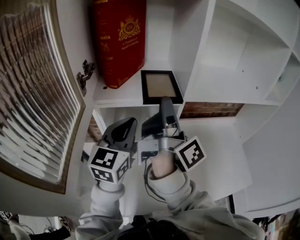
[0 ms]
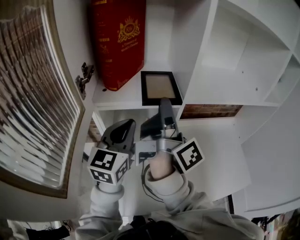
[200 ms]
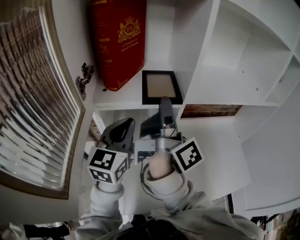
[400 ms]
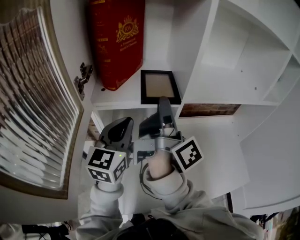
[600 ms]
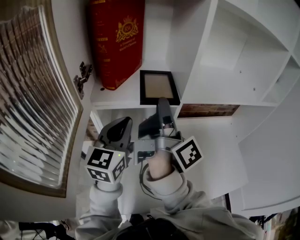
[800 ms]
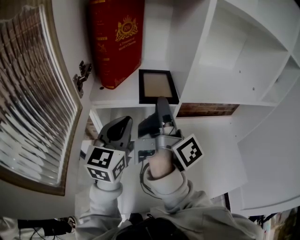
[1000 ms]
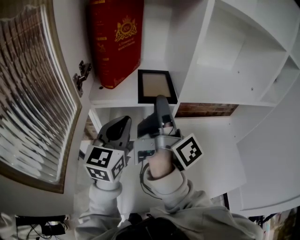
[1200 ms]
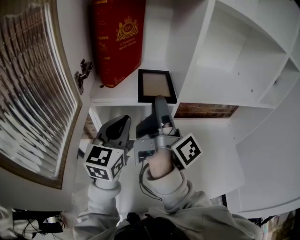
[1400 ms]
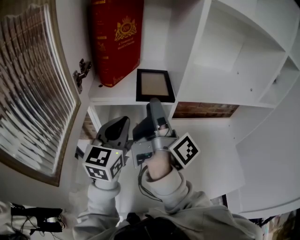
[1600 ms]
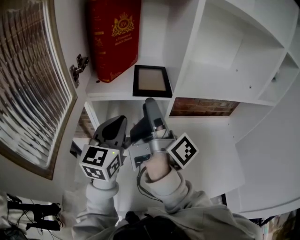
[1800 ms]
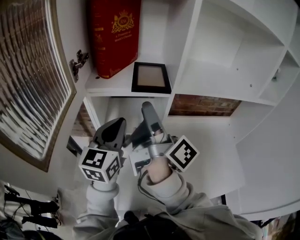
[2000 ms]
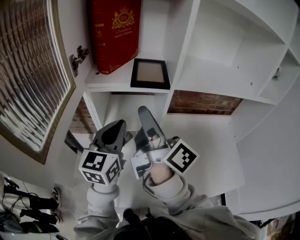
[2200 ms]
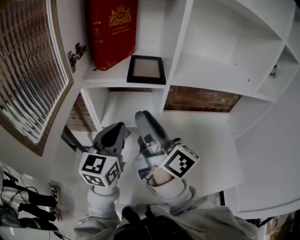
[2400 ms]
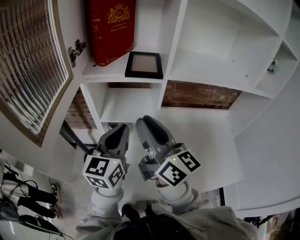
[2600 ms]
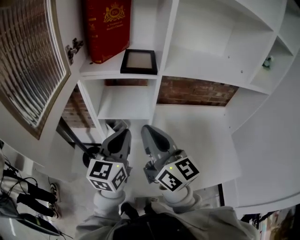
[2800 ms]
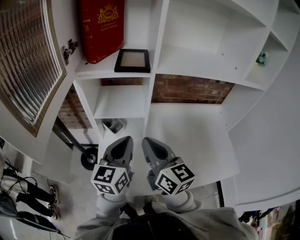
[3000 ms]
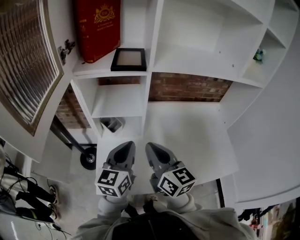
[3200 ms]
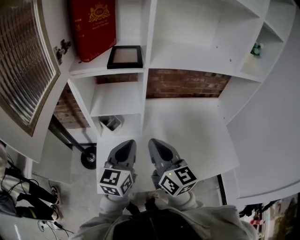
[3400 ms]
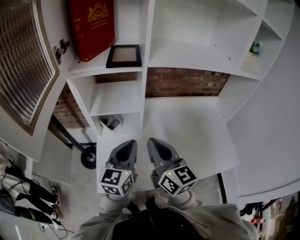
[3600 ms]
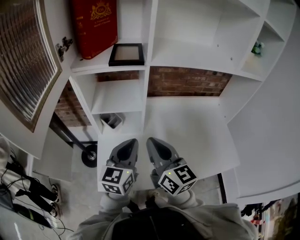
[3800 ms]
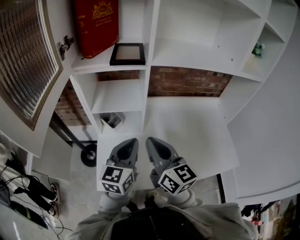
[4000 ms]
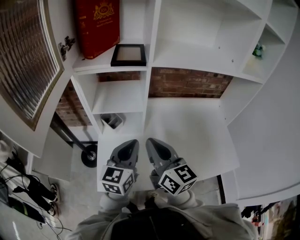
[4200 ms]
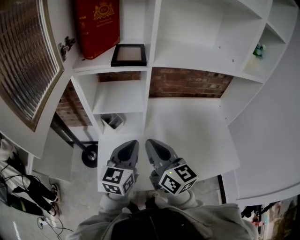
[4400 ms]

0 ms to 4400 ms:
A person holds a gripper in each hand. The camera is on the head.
0 ms to 1400 ms: The right gripper opens up.
1400 ms to 3000 ms: The left gripper travels backward, downward and to the right by about 20 cm; the right gripper heads backward and downward, covering some 20 cm, rotates around the line of its fingers by some 60 degrees, counterclockwise from behind, and closes.
3000 ms to 4400 ms: The left gripper moves approximately 5 cm.

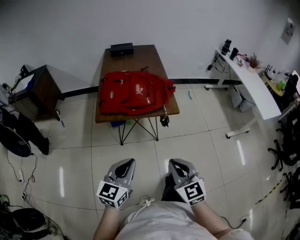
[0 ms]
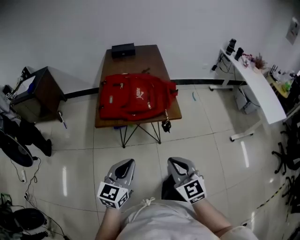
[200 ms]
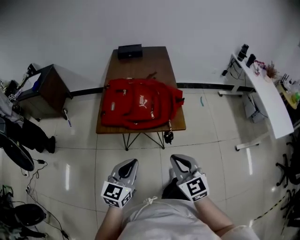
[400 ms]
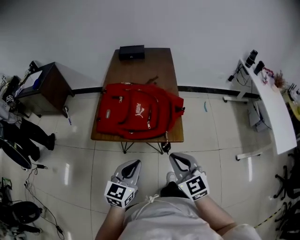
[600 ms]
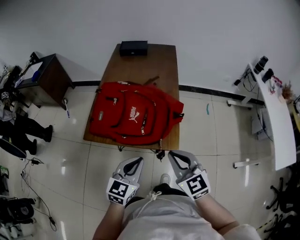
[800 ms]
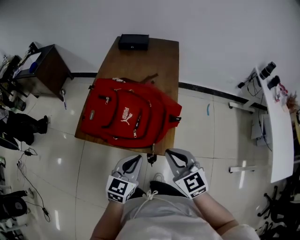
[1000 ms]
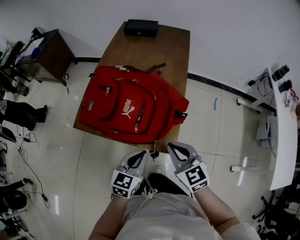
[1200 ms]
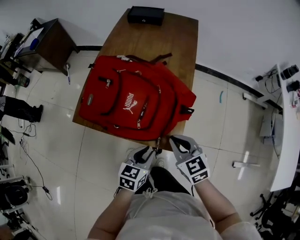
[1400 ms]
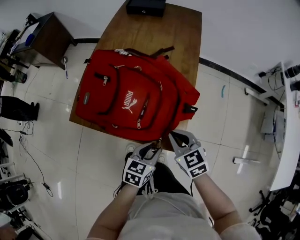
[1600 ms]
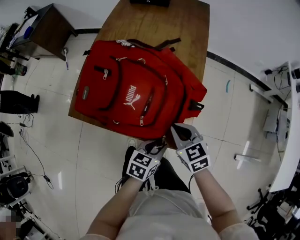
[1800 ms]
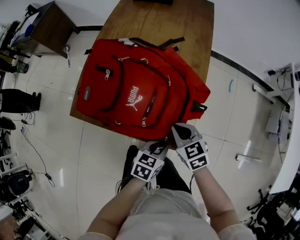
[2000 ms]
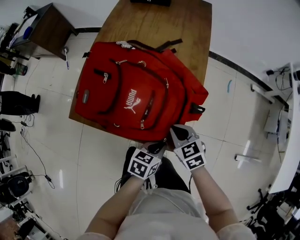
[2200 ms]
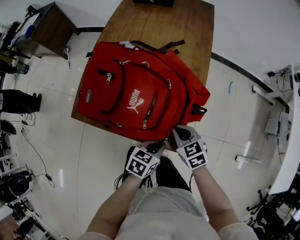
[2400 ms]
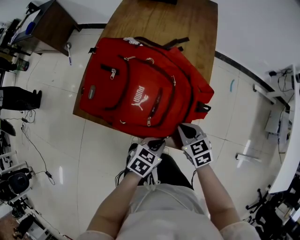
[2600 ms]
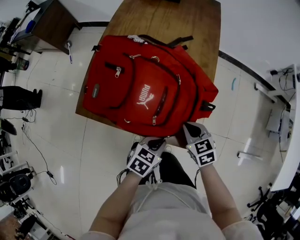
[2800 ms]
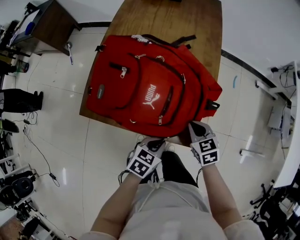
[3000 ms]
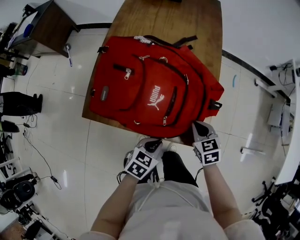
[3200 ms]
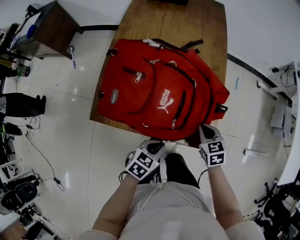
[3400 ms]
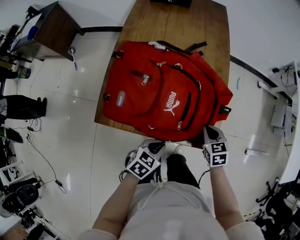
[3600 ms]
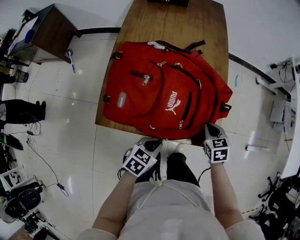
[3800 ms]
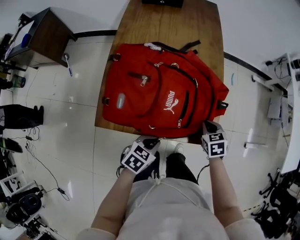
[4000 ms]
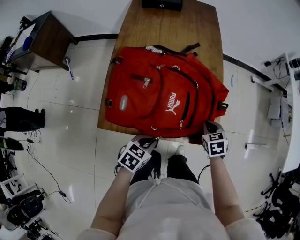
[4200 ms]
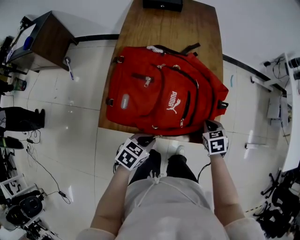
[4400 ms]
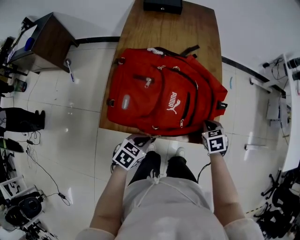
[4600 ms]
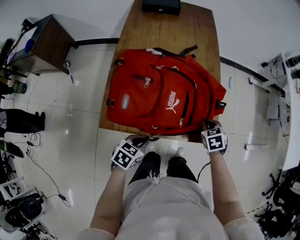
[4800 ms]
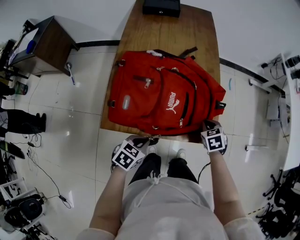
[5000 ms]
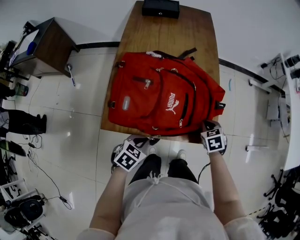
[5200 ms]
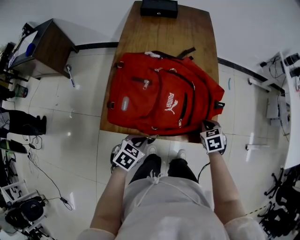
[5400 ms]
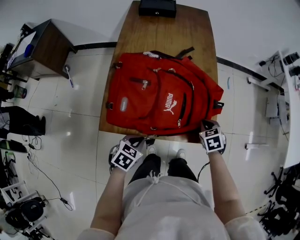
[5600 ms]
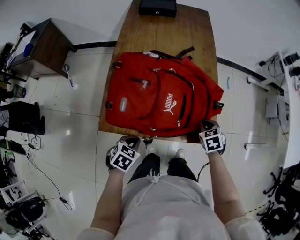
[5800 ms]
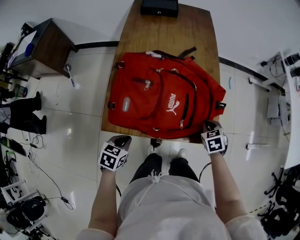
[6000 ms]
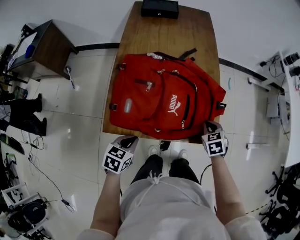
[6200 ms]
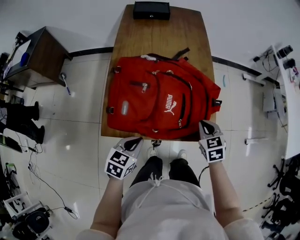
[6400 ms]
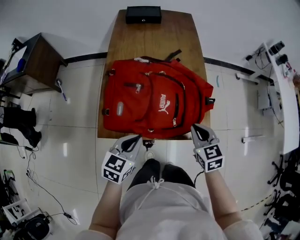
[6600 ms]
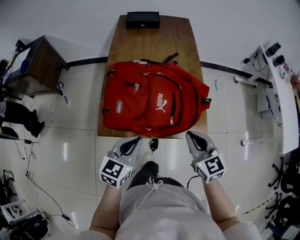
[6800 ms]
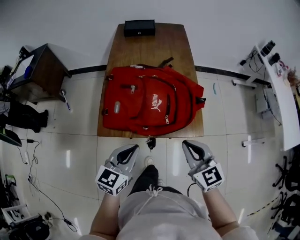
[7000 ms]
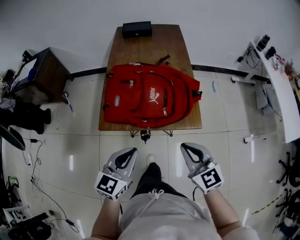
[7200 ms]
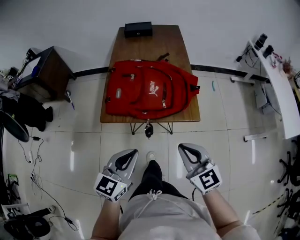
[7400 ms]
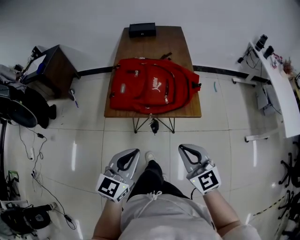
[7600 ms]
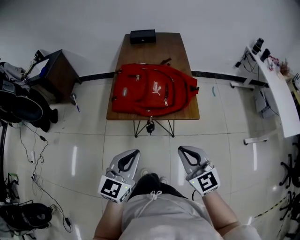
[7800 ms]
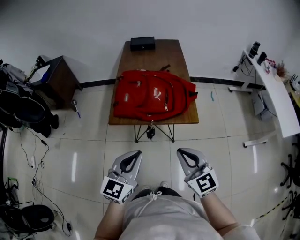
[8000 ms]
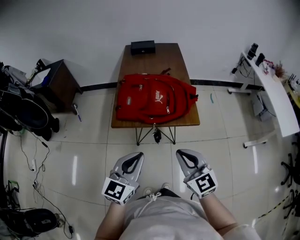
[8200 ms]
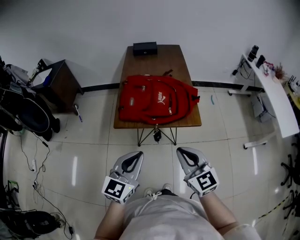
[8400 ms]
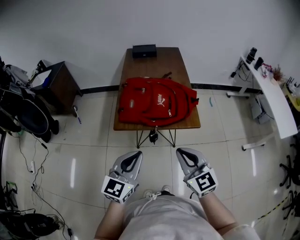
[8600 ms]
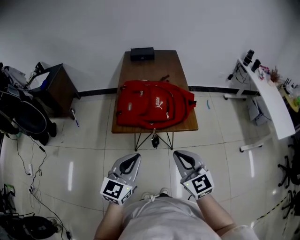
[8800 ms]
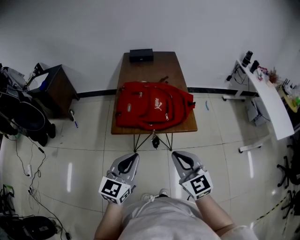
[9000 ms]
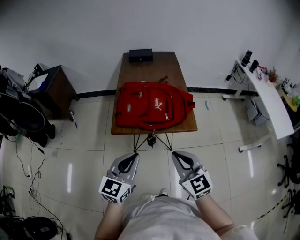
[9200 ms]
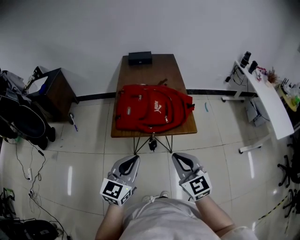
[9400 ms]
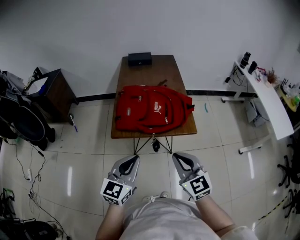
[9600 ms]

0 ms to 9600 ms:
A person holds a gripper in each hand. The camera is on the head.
0 ms to 1600 ms: The pair of grippers is taken forward and to the right, about 40 cm. The left gripper goes some 20 cm downward, turns by about 30 degrees, and opens up; the right gripper rotates some 30 degrees.
1600 ms to 3200 ms: The left gripper moves to the left, about 10 cm, and closes its fingers; the right gripper goes roughly 10 cm downward.
3200 ms to 4800 ms: The left gripper travels to the left by some 15 cm.
4800 ms to 6400 ms: The grippers both shift upward by roughly 5 cm.
6400 ms to 8000 ms: Both grippers travel together backward and upward, approximately 35 cm. The left gripper angles its fingers upward, by some 30 degrees. Meanwhile the right gripper tips its fingers upward by roughly 40 degrees.
8000 ms to 9600 ms: The right gripper shifts by approximately 5 cm.

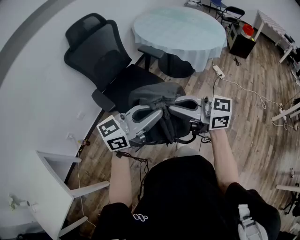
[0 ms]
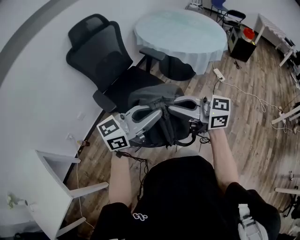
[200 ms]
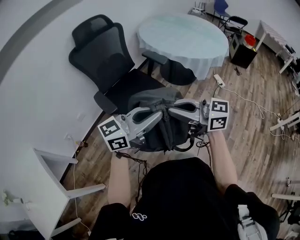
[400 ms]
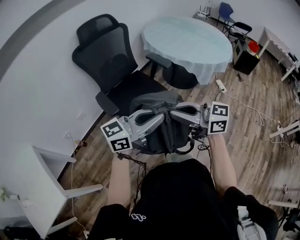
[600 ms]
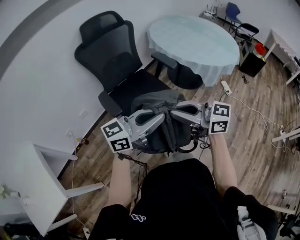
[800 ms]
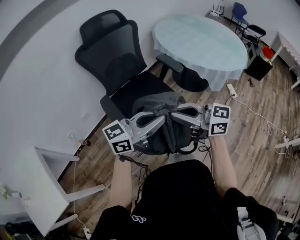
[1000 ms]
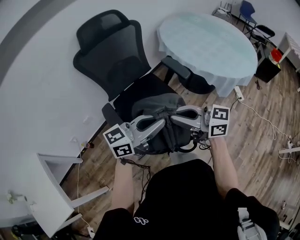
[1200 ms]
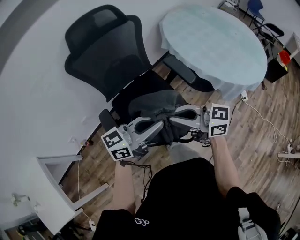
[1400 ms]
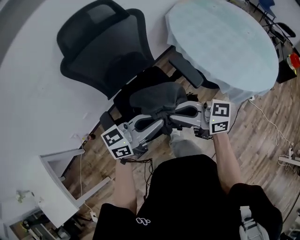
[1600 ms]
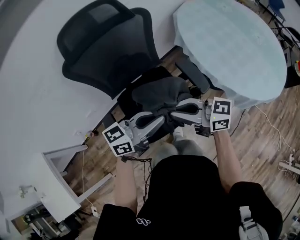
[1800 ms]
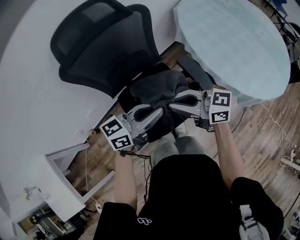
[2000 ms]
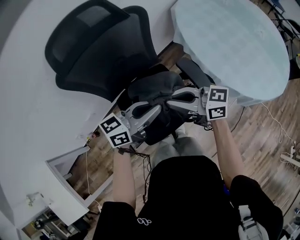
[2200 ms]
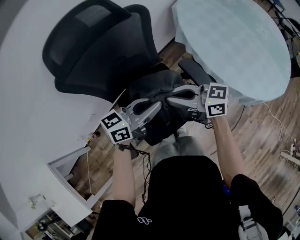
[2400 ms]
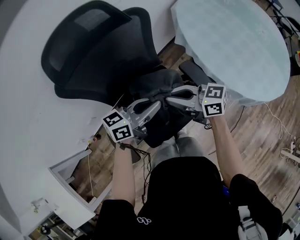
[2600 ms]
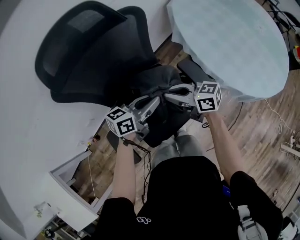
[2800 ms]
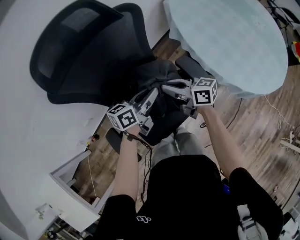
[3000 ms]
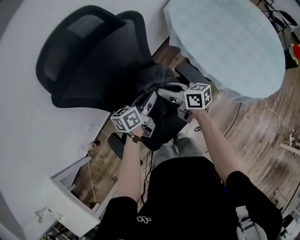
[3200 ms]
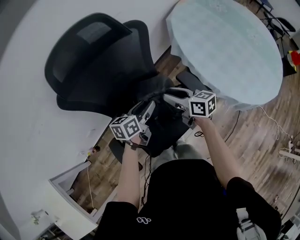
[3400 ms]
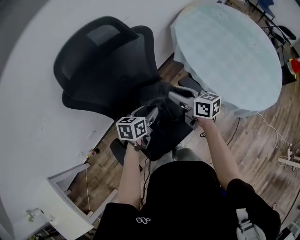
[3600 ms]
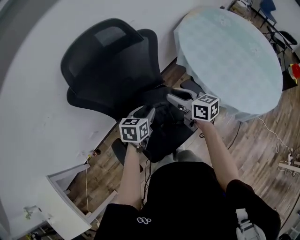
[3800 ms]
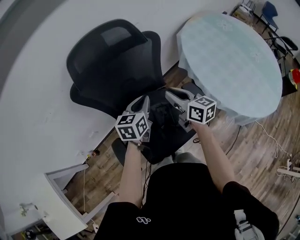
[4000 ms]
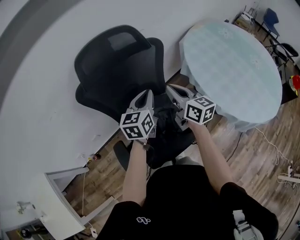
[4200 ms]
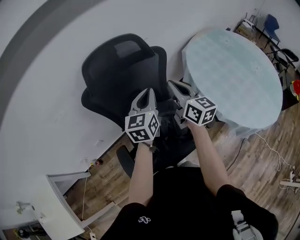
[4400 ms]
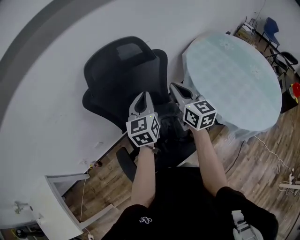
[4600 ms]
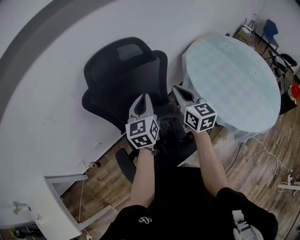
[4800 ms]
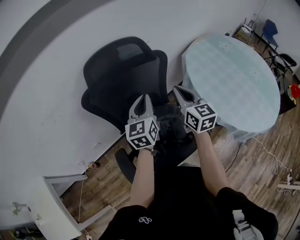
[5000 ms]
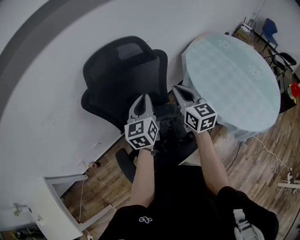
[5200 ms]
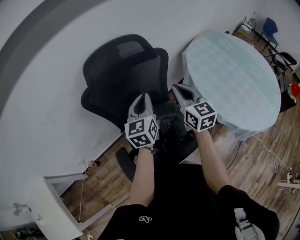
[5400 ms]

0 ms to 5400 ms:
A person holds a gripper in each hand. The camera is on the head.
0 ms to 1400 ms: The right gripper shifts by approximately 35 cm; the left gripper shifts by about 30 cm.
1400 ms to 2800 ms: The left gripper changes place by approximately 35 cm, and swivels some 30 degrees. The right gripper moves roughly 35 cm.
2800 ms to 4000 ms: The right gripper is displaced upward by about 5 cm, turns by about 30 degrees, and opens, then closes once more. Meanwhile the left gripper ends up approximately 10 cm from where it was, swivels roughly 40 degrees, and opens, then closes again.
4000 ms to 5400 ms: The grippers both shift upward by about 10 cm. The right gripper changes its angle by about 30 degrees, and closes its fingers. The left gripper rotates roughly 20 degrees.

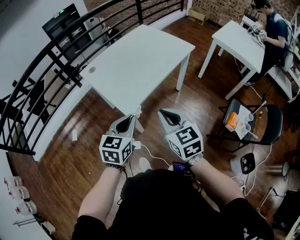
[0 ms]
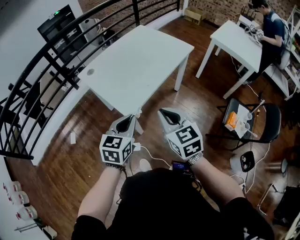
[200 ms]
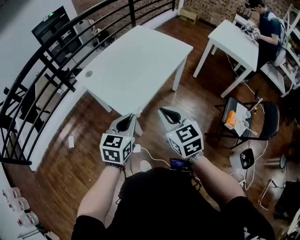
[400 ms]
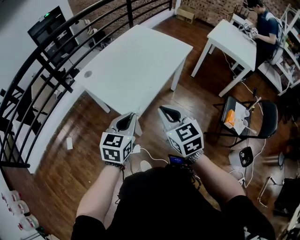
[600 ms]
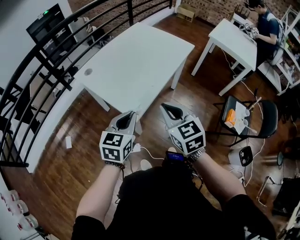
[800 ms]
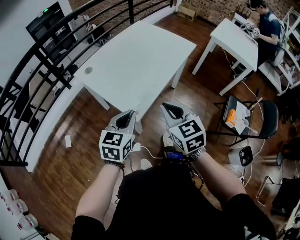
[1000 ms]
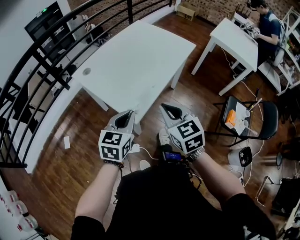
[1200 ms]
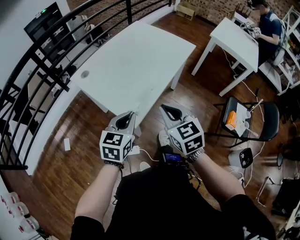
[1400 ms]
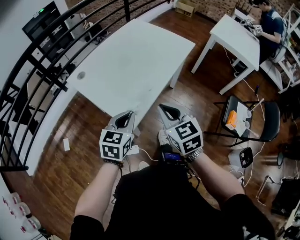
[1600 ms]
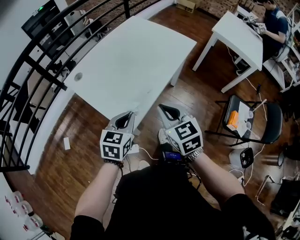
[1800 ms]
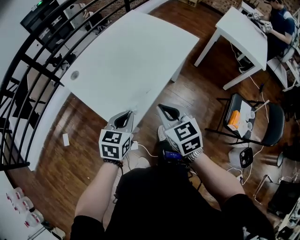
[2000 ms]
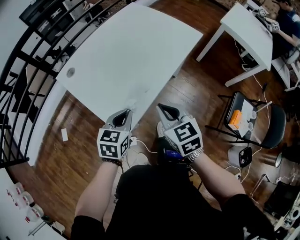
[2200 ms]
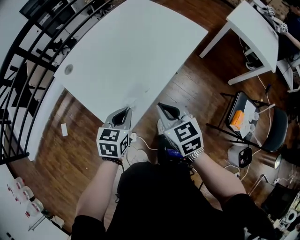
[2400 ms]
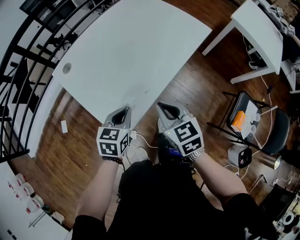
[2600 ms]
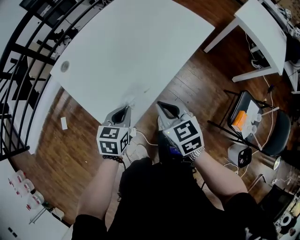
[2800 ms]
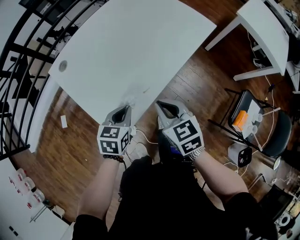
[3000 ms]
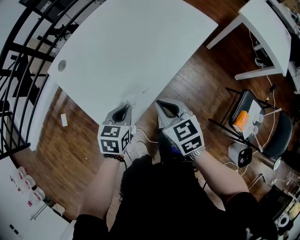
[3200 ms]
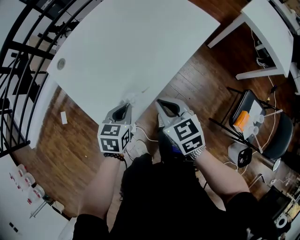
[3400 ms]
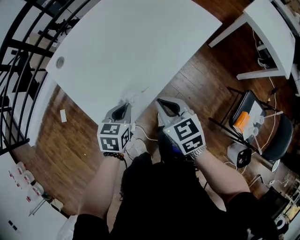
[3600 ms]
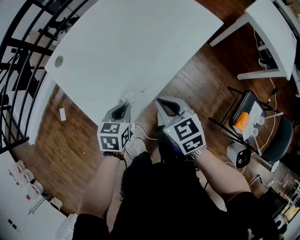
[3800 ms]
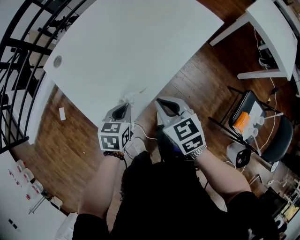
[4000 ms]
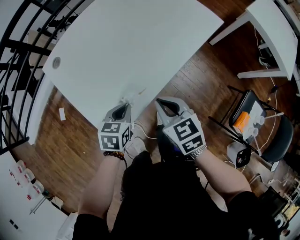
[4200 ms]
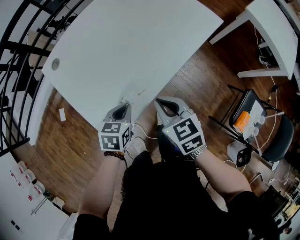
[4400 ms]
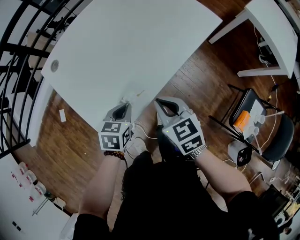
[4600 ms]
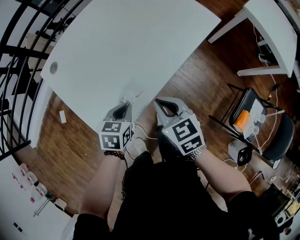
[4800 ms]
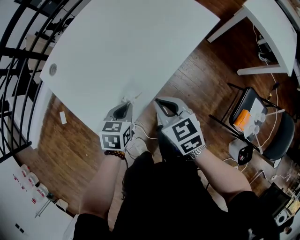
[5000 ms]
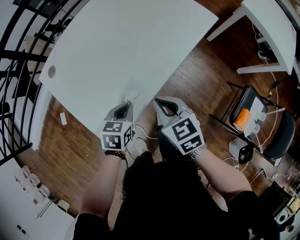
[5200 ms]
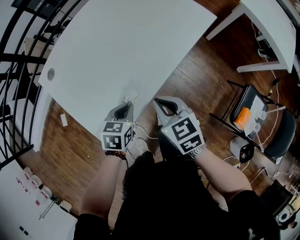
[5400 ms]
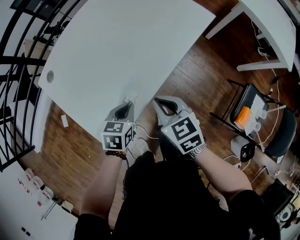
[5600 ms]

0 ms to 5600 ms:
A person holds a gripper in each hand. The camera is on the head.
0 ms to 1400 ms: The grippers both shift forward and to the left by some 10 cm.
1400 ms to 2800 ms: The left gripper goes some 20 cm downward and forward, and swivels roughly 20 degrees. Meanwhile the right gripper heads forward and downward, covering about 20 cm.
2800 ms to 4200 ms: The left gripper moves downward, some 5 cm.
4200 ms to 5600 ms: The left gripper heads to the right, covering roughly 5 cm.
